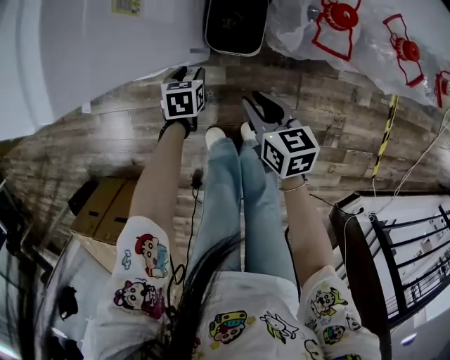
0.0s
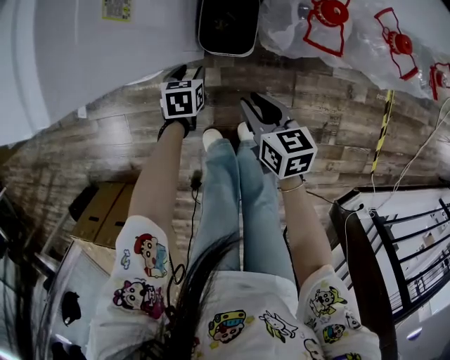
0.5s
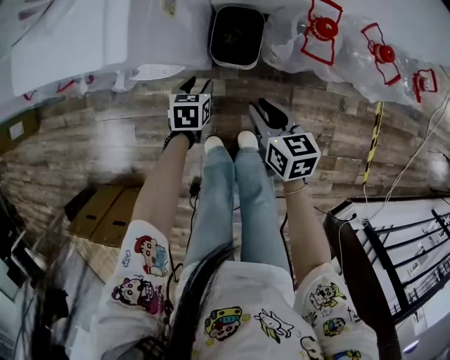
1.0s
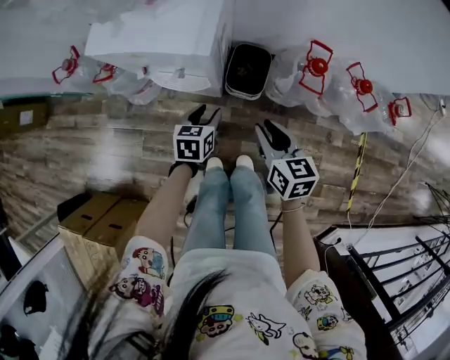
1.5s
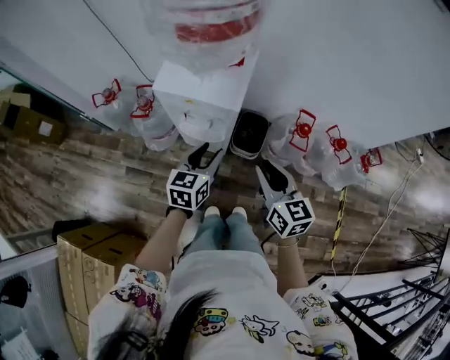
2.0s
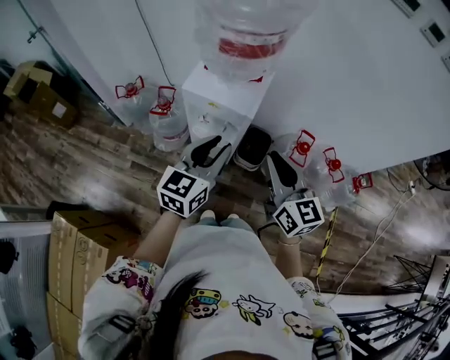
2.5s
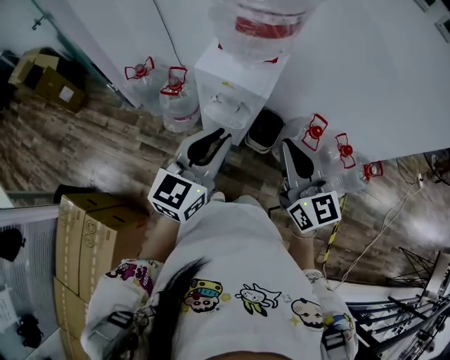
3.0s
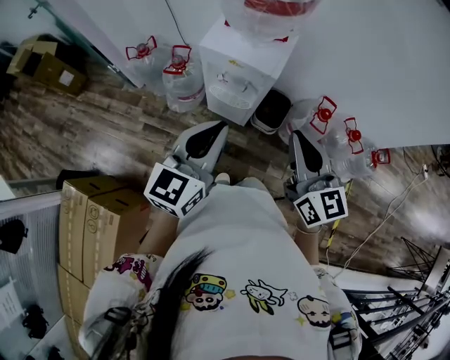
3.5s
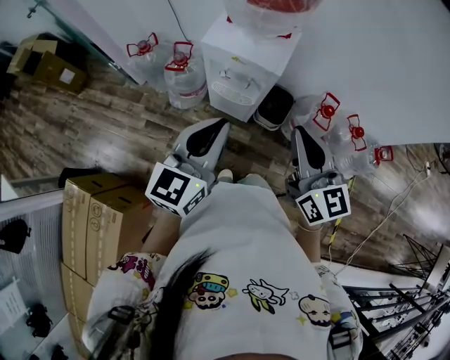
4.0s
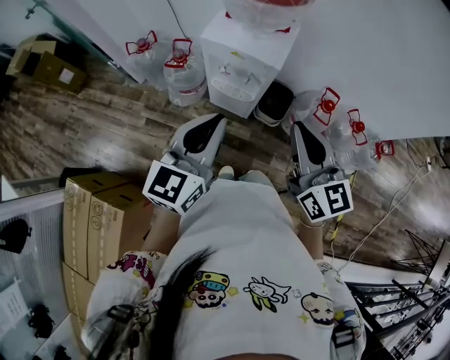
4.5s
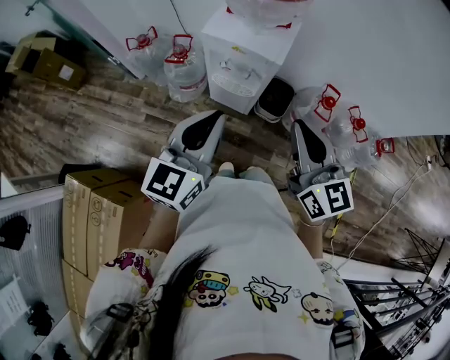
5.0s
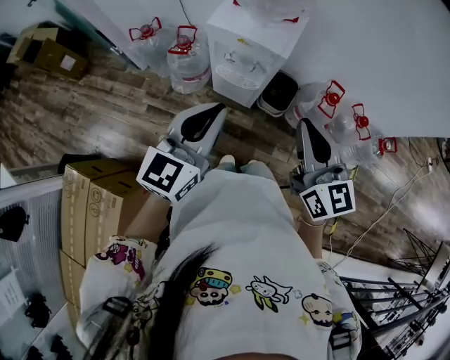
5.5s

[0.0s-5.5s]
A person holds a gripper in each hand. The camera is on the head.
0.0s to 2.0s: The two grippers go some 40 cm upward. The left gripper angles its fingers upward, by approximately 40 degrees, while the right gripper rotates some 30 degrees.
2.0s to 3.5s: Both grippers travel together upward and backward, roughly 20 cm. The right gripper closes its fingers, while the left gripper turns by roughly 20 degrees, and closes its fingers.
3.5s to 5.5s: There are only small adjustments of the grippers.

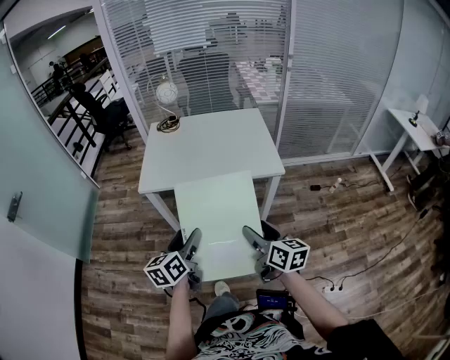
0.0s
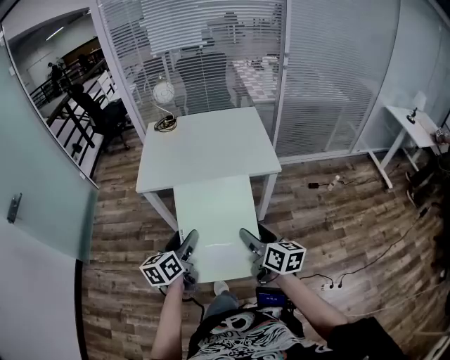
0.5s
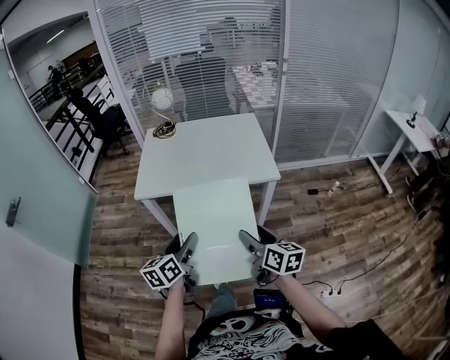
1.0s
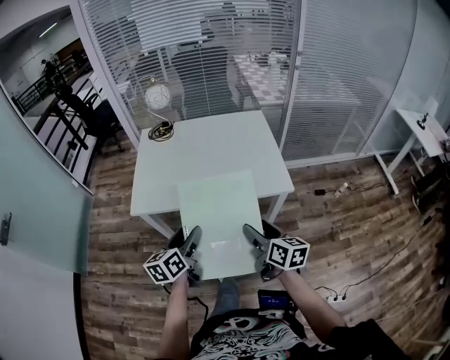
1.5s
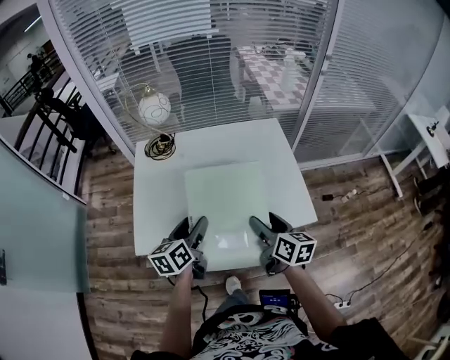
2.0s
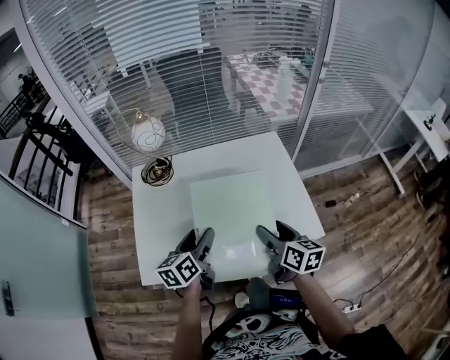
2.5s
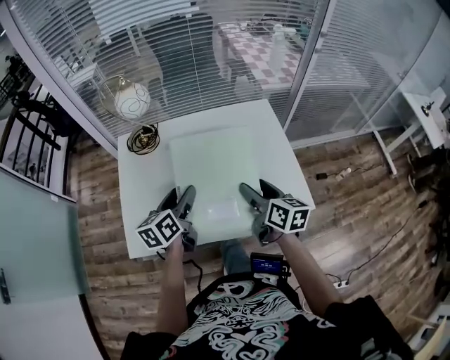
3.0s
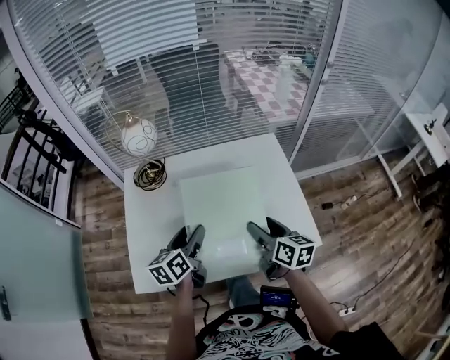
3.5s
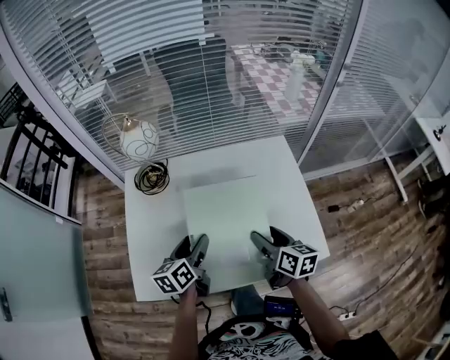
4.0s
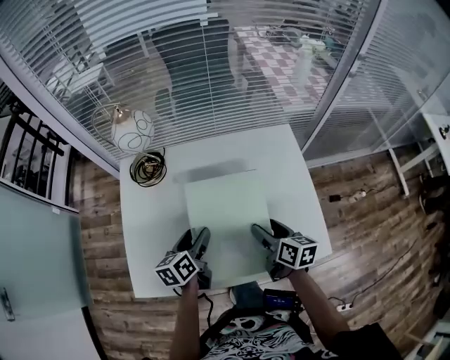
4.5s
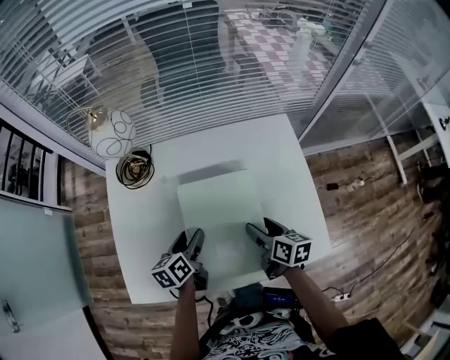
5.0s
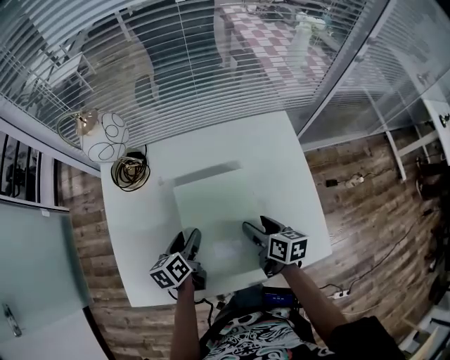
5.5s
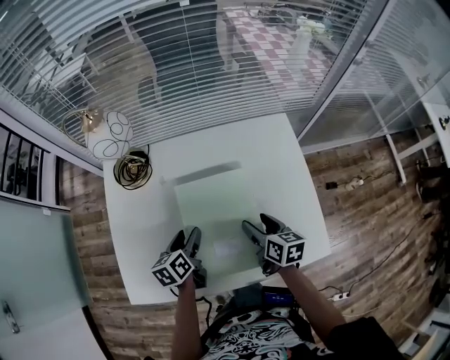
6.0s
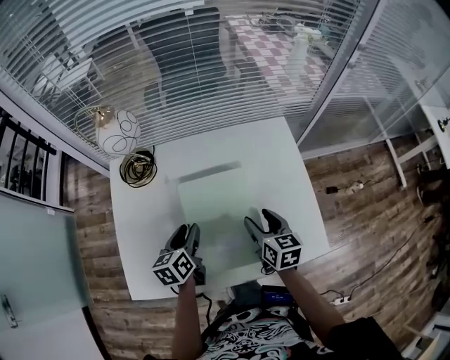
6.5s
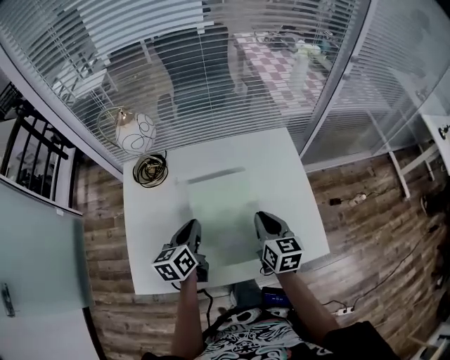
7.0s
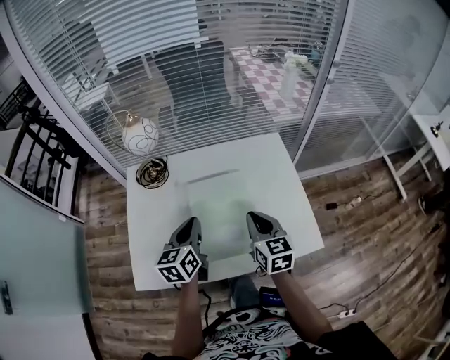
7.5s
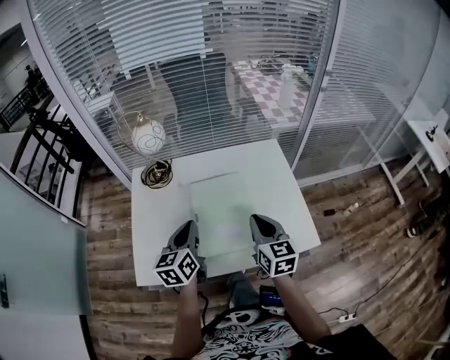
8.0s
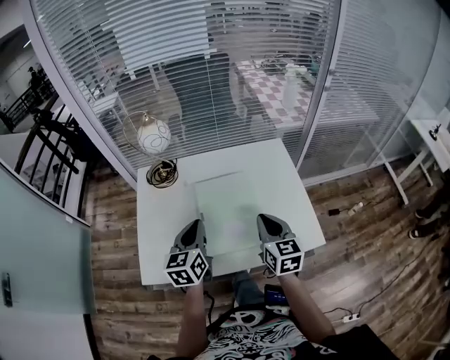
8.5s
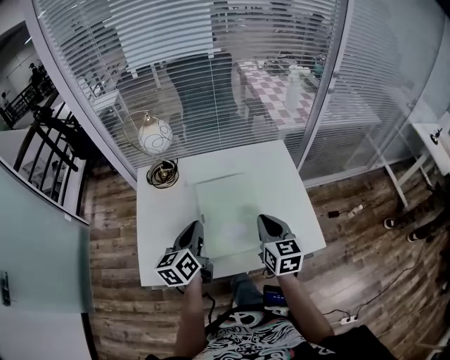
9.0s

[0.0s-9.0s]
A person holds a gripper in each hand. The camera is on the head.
0.0s to 2.0s: The two grippers go approximately 35 cm forward.
2.0s to 4.5s: Both grippers travel together forward and downward, some 15 cm.
4.5s to 7.0s: The right gripper rotates roughly 20 degrees, and closes, while the left gripper moves roughly 5 cm, and closes its fingers.
7.0s to 9.0s: The left gripper goes roughly 10 cm upward and backward. Meanwhile the right gripper is displaced backward and upward by approximately 10 cm.

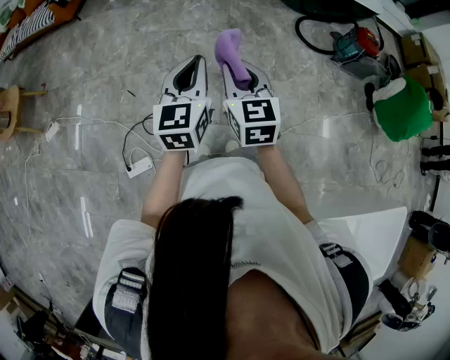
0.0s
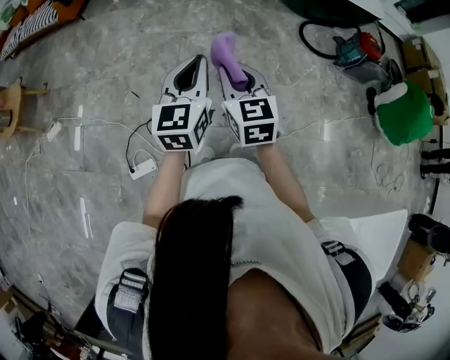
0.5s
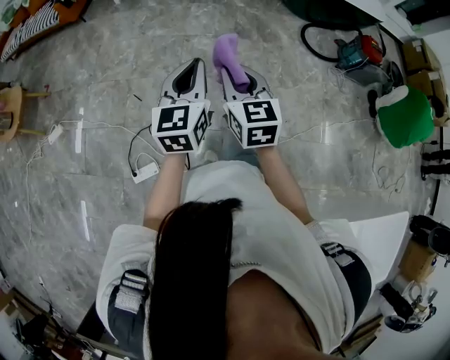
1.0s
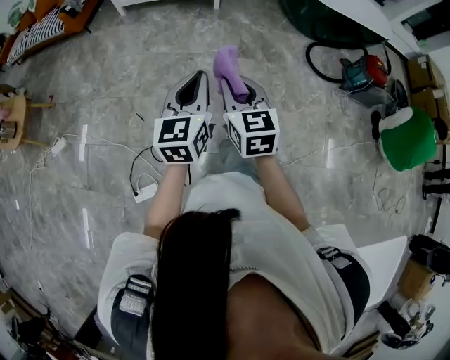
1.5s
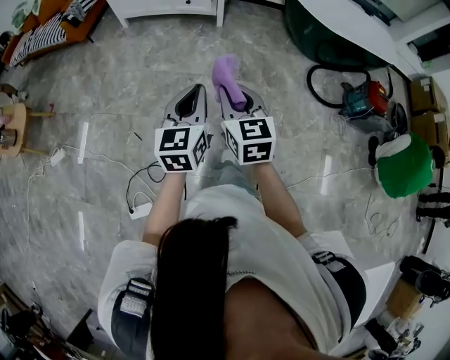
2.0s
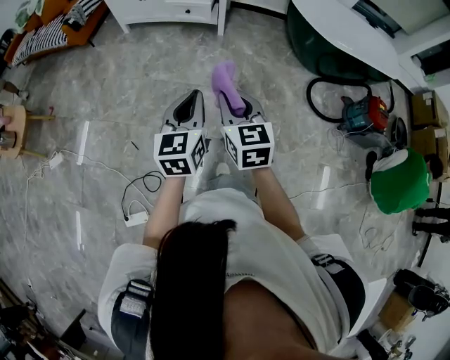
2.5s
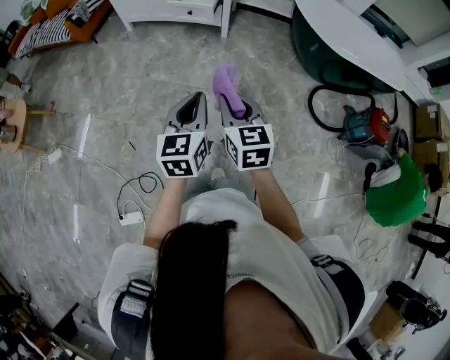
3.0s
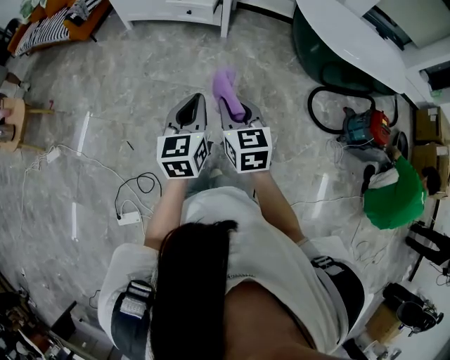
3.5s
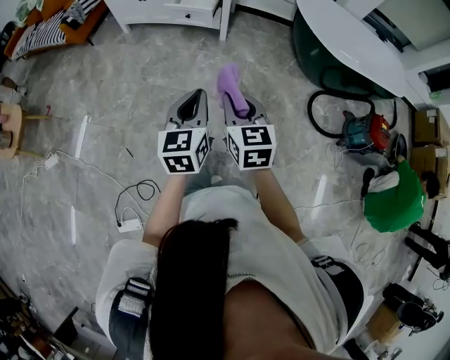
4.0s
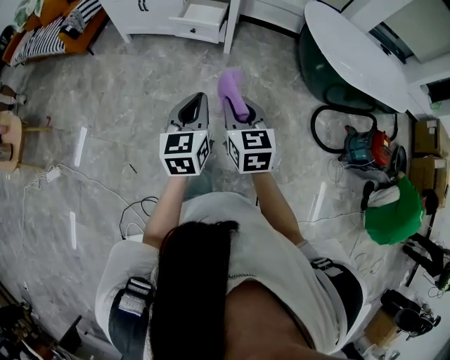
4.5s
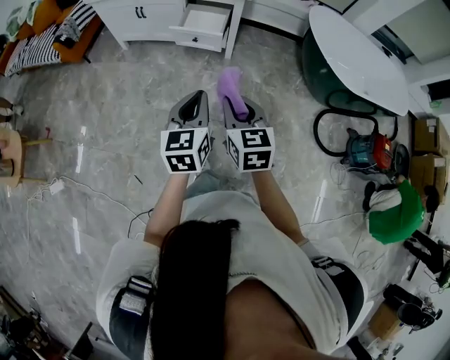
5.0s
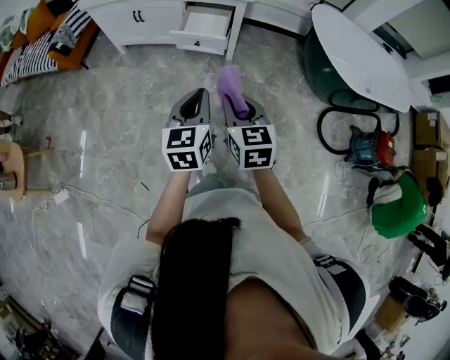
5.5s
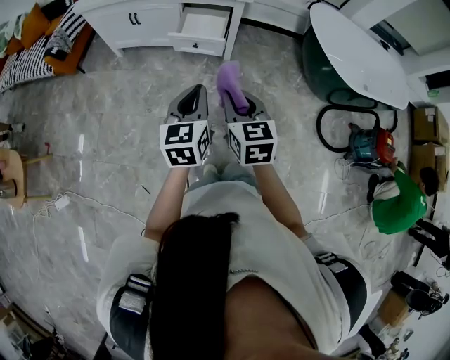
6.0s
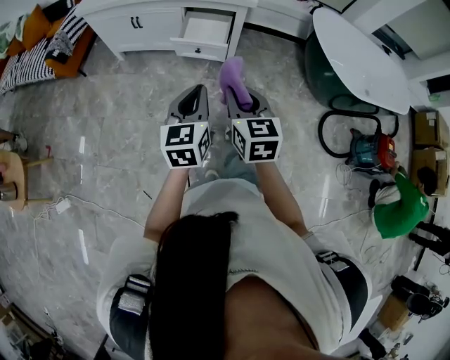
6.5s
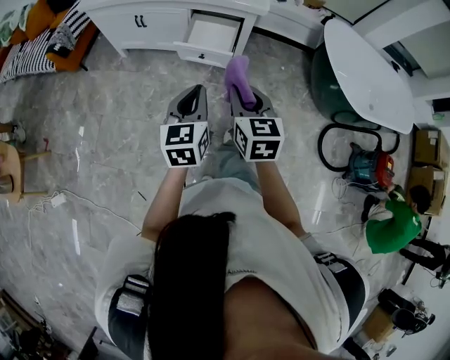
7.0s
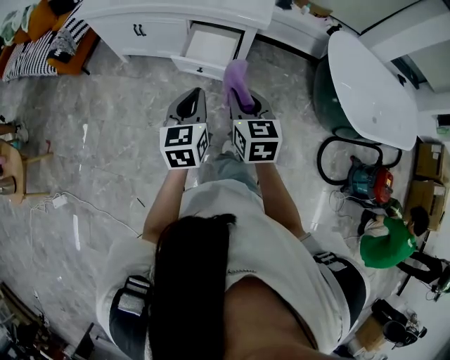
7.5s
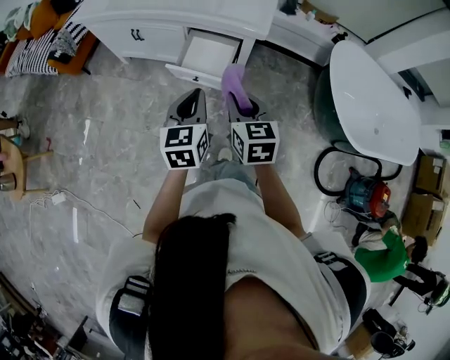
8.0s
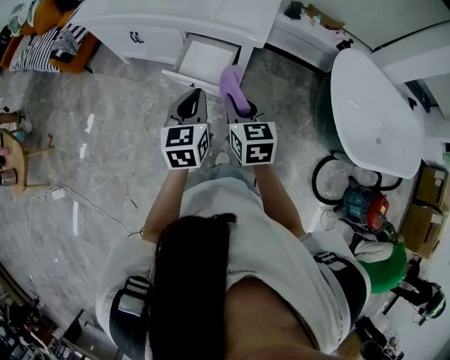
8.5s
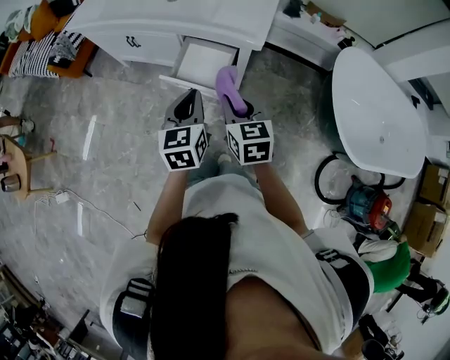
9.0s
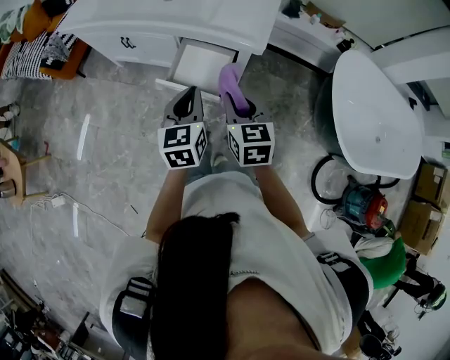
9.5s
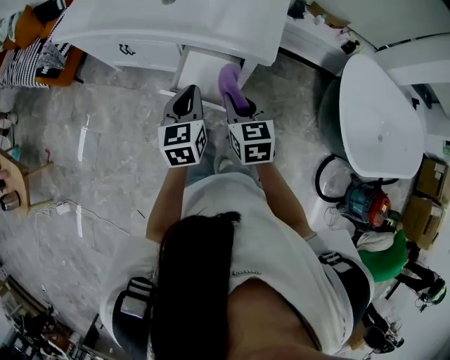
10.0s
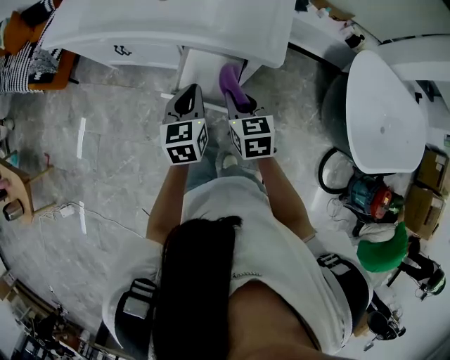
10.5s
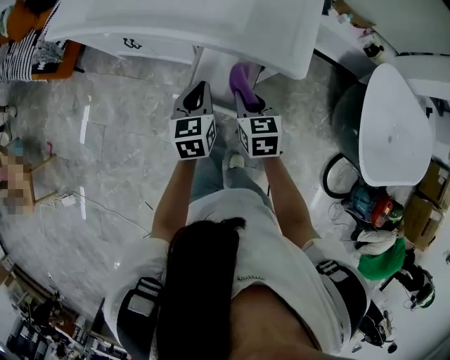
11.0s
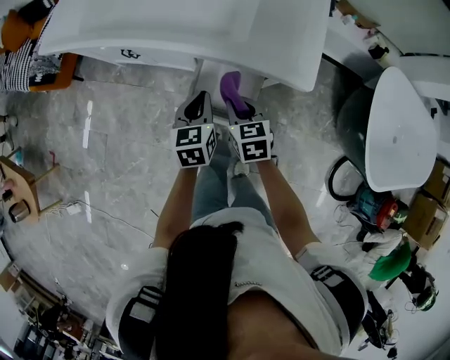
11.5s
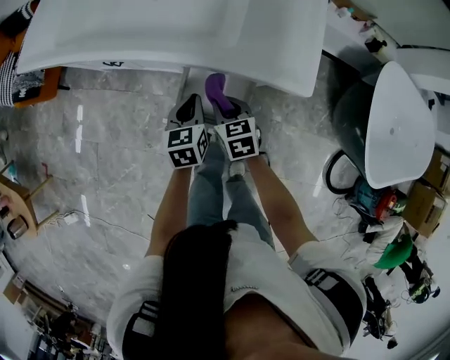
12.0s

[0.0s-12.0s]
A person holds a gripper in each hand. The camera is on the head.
0.0s to 2.0s: Both grippers move forward, roughly 25 cm.
2.0s to 4.0s: The grippers both shift forward and to the right by approximately 20 cm.
4.0s to 6.0s: Both grippers move forward and to the left, about 30 cm.
6.0s to 8.0s: The grippers both shift forward by some 25 cm.
8.0s to 10.0s: The two grippers go approximately 20 cm forward.
10.0s to 12.0s: The two grippers go some 25 cm downward and forward.
